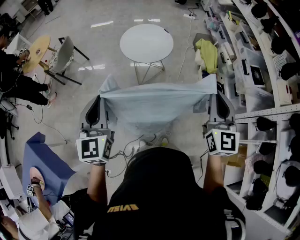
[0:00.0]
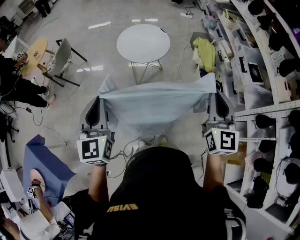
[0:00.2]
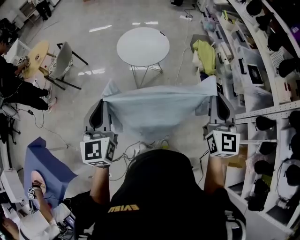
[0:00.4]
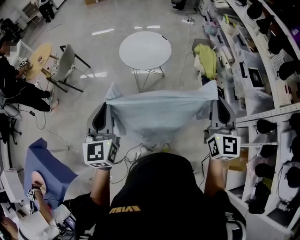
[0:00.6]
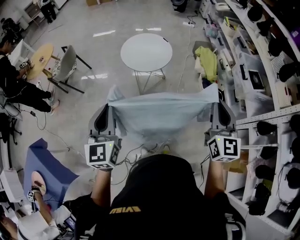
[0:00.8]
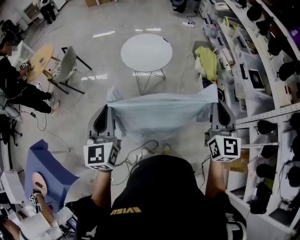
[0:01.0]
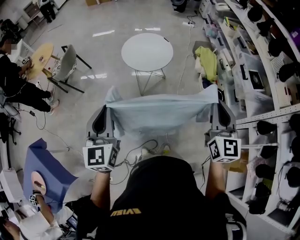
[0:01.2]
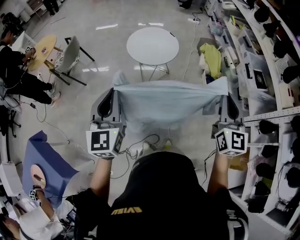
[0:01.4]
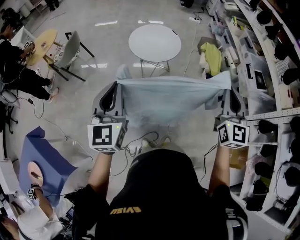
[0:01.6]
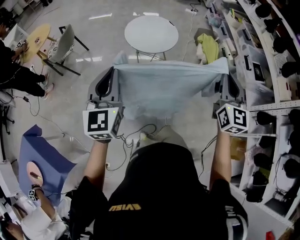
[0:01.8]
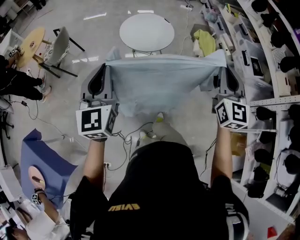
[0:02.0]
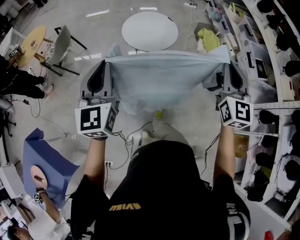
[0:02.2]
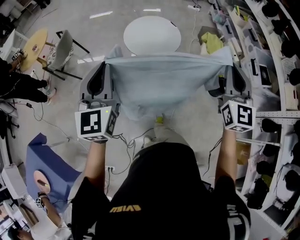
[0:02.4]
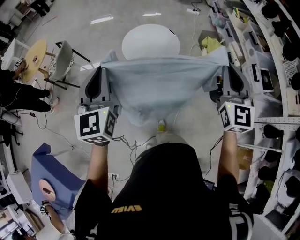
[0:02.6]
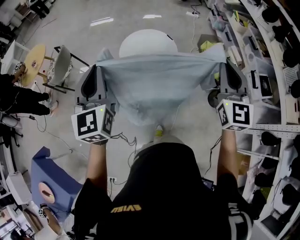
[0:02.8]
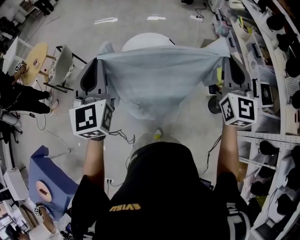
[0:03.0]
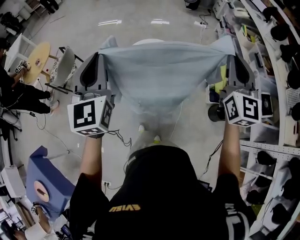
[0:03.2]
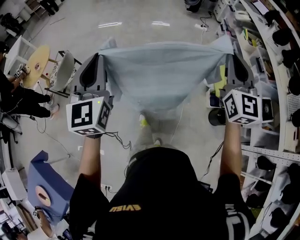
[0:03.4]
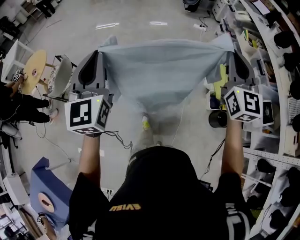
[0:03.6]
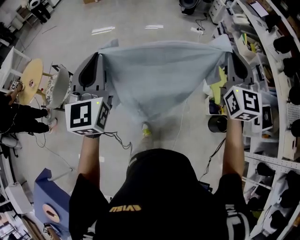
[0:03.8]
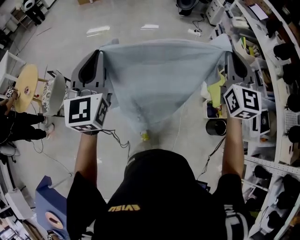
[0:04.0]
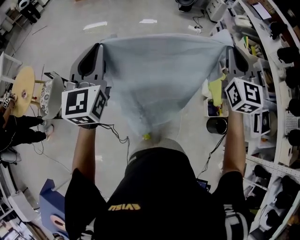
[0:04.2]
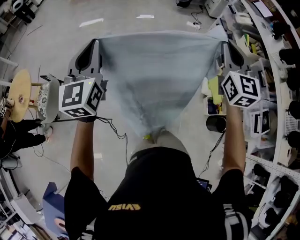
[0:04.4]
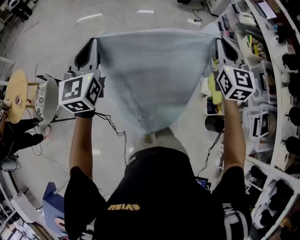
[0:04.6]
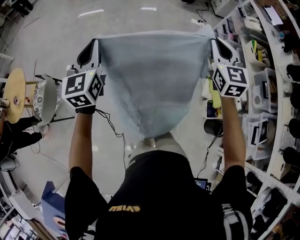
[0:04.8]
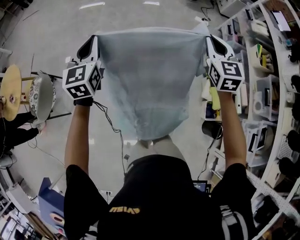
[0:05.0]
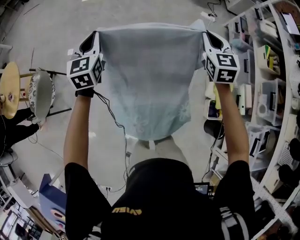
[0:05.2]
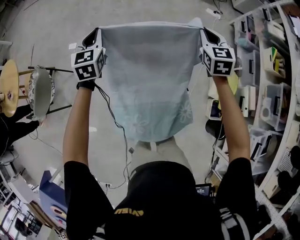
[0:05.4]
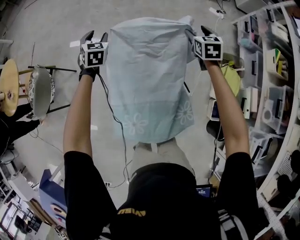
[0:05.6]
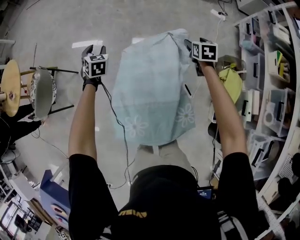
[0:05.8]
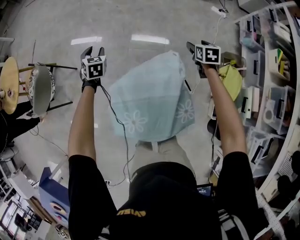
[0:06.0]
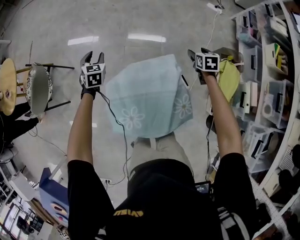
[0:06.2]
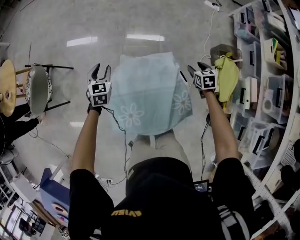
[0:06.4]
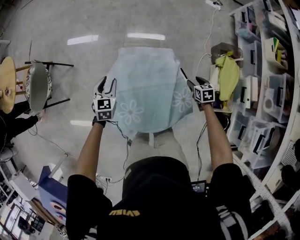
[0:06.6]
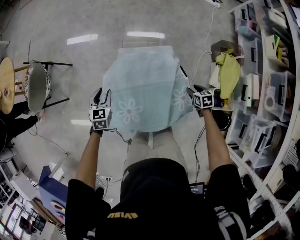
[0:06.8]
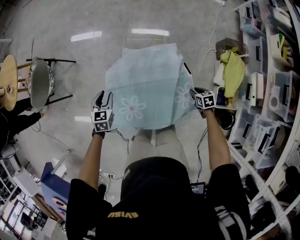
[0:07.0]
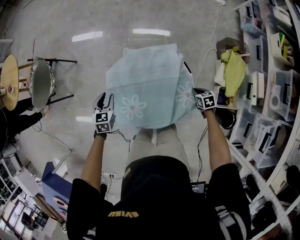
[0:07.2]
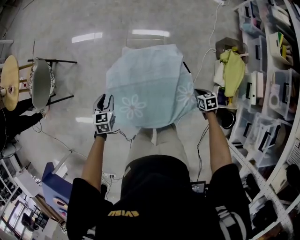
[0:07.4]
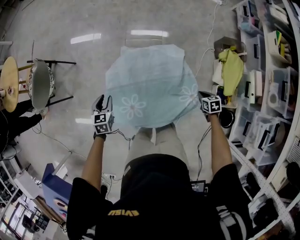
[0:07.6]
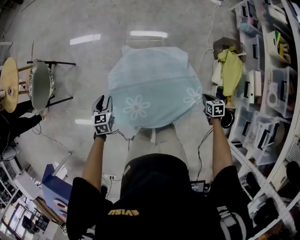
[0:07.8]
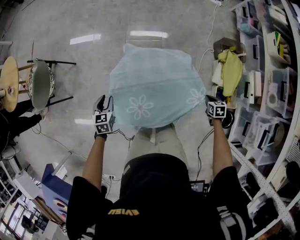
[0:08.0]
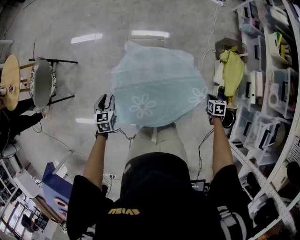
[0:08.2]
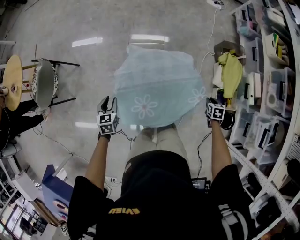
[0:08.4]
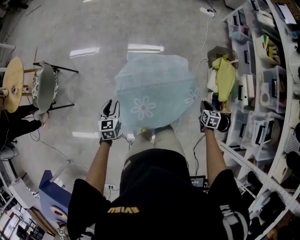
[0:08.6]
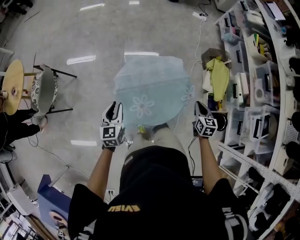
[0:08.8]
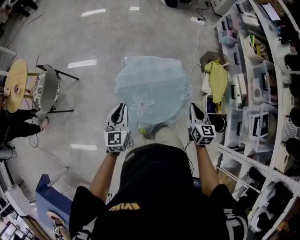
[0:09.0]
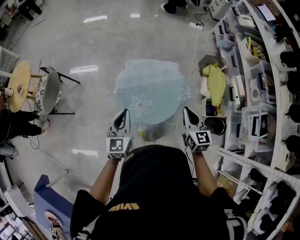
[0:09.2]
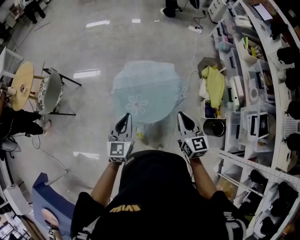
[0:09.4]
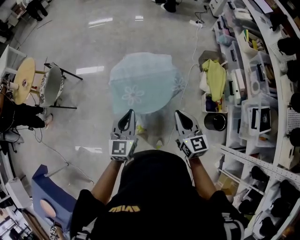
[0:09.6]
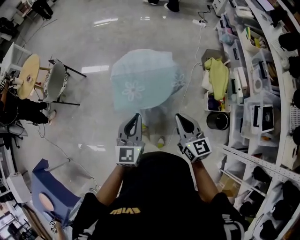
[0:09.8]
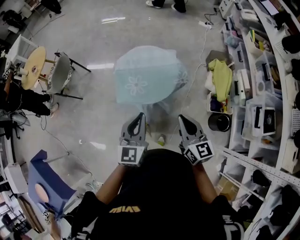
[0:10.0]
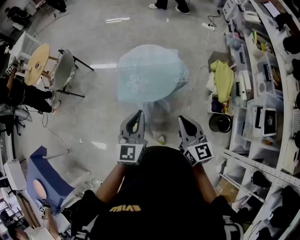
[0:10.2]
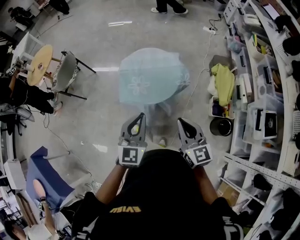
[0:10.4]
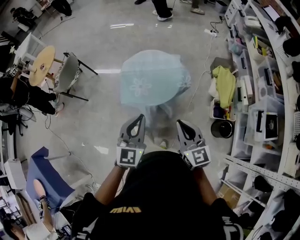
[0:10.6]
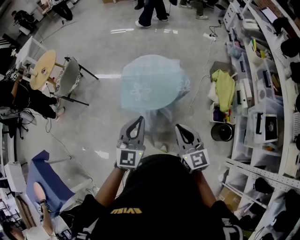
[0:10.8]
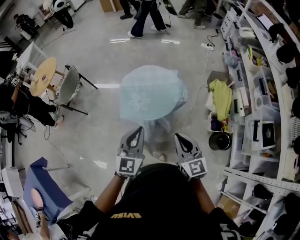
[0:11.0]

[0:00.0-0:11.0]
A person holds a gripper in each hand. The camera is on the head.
0:00.0 to 0:01.6: The grippers move only a little.
0:01.6 to 0:03.2: The two grippers go about 35 cm forward.
0:03.2 to 0:04.8: The pair of grippers is taken forward, some 60 cm. The right gripper turns by approximately 20 degrees.
0:04.8 to 0:06.2: Both grippers travel together downward, approximately 40 cm. The right gripper tilts its fingers approximately 40 degrees downward, and opens its fingers. The left gripper angles its fingers downward, by about 40 degrees, and opens.
0:06.2 to 0:07.8: Both grippers travel together backward, about 30 cm. The right gripper closes.
0:07.8 to 0:09.4: The left gripper heads upward, backward and to the right, covering approximately 35 cm, points its fingers about 30 degrees further upward, and closes. Meanwhile the right gripper is displaced upward, backward and to the left by roughly 50 cm, and tilts its fingers some 50 degrees upward.
0:09.4 to 0:11.0: The left gripper is displaced backward and to the right by roughly 25 cm; the right gripper shifts some 20 cm backward.

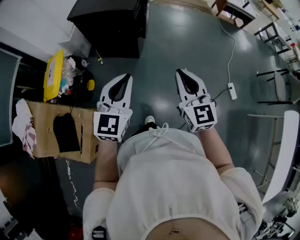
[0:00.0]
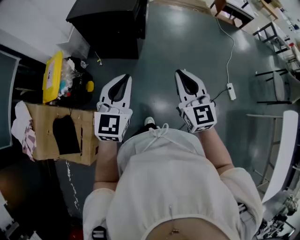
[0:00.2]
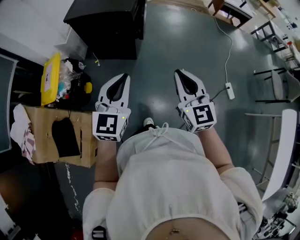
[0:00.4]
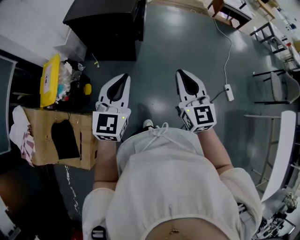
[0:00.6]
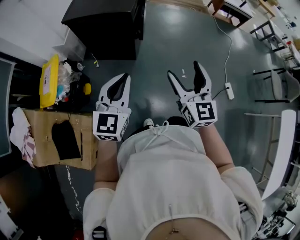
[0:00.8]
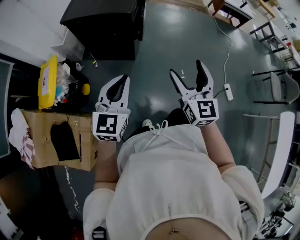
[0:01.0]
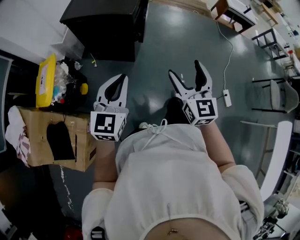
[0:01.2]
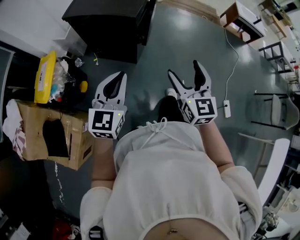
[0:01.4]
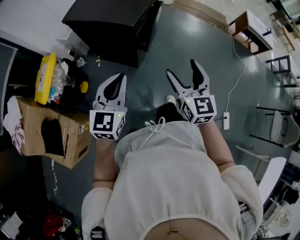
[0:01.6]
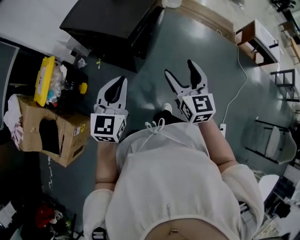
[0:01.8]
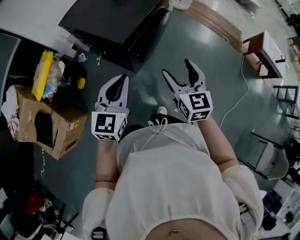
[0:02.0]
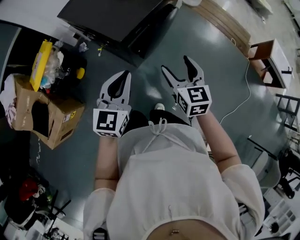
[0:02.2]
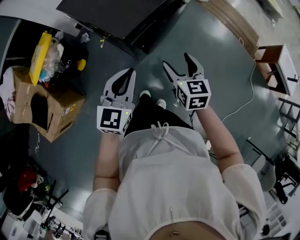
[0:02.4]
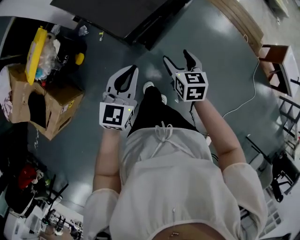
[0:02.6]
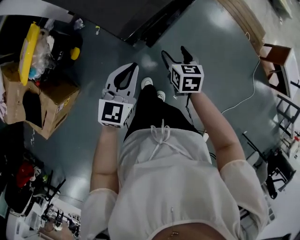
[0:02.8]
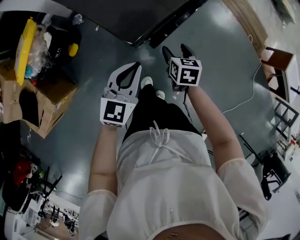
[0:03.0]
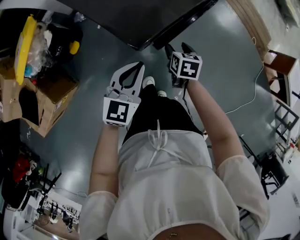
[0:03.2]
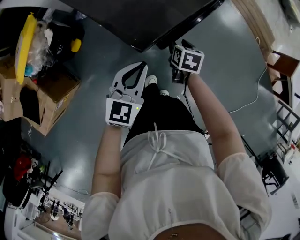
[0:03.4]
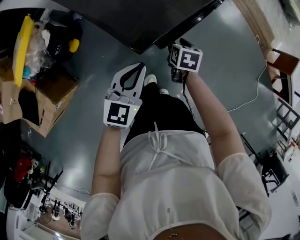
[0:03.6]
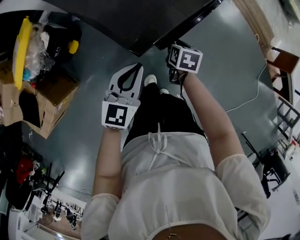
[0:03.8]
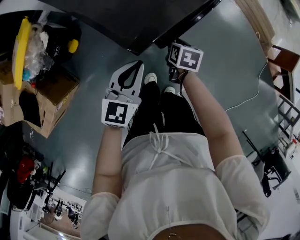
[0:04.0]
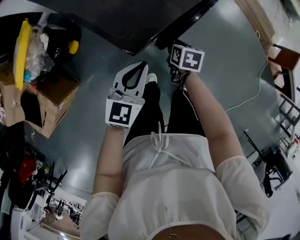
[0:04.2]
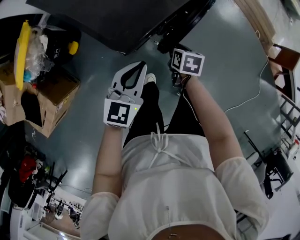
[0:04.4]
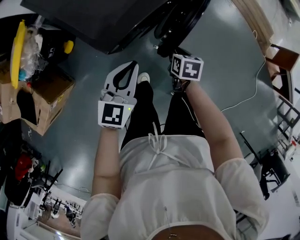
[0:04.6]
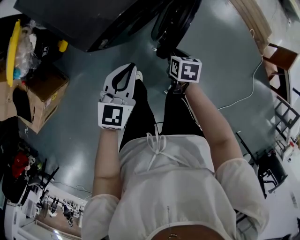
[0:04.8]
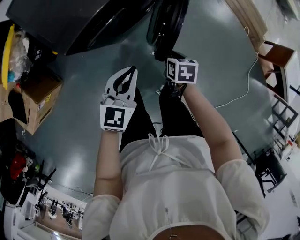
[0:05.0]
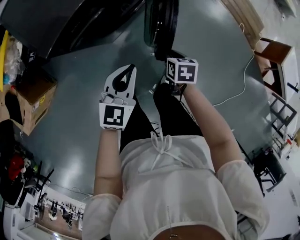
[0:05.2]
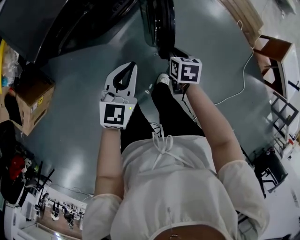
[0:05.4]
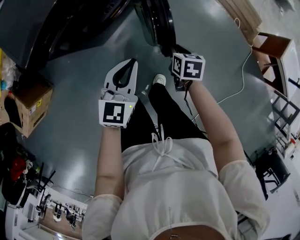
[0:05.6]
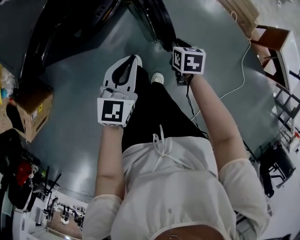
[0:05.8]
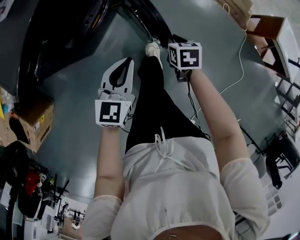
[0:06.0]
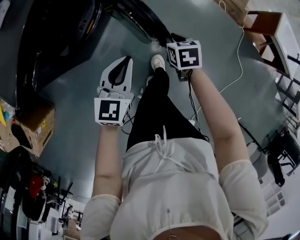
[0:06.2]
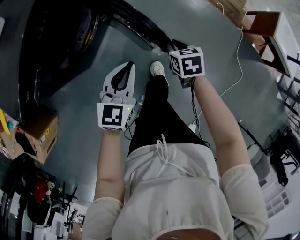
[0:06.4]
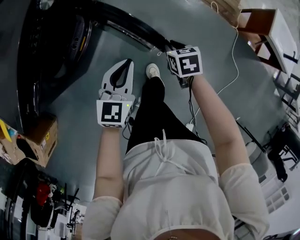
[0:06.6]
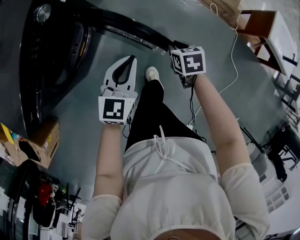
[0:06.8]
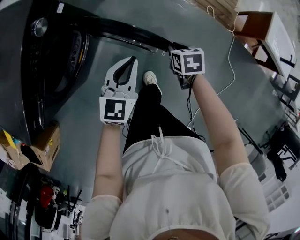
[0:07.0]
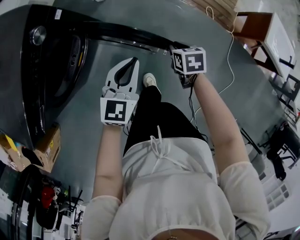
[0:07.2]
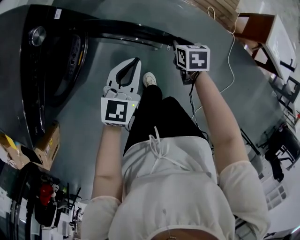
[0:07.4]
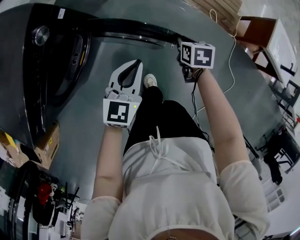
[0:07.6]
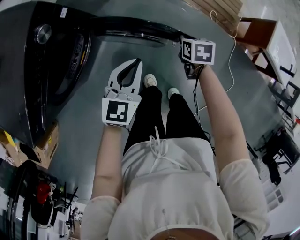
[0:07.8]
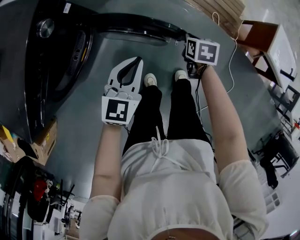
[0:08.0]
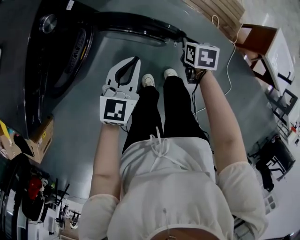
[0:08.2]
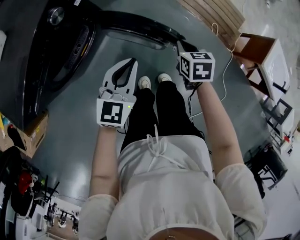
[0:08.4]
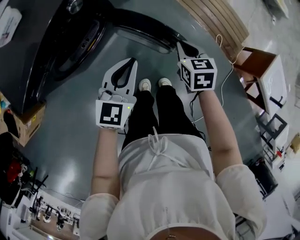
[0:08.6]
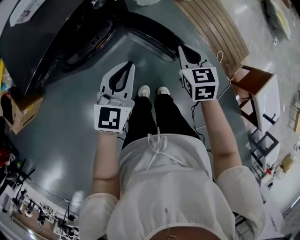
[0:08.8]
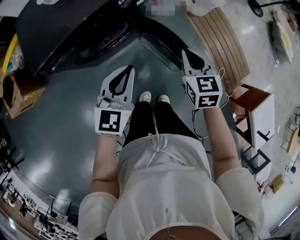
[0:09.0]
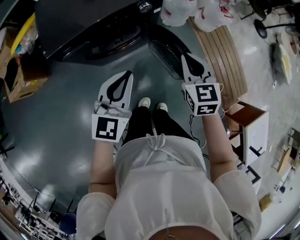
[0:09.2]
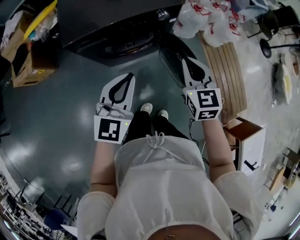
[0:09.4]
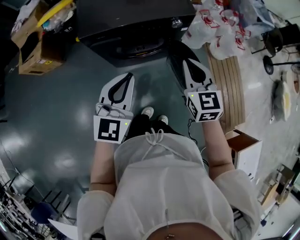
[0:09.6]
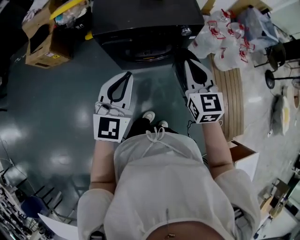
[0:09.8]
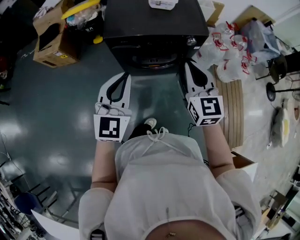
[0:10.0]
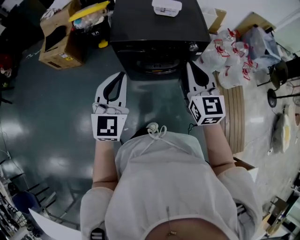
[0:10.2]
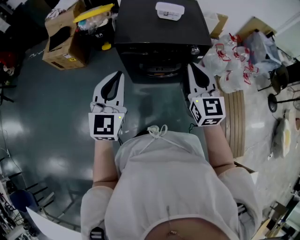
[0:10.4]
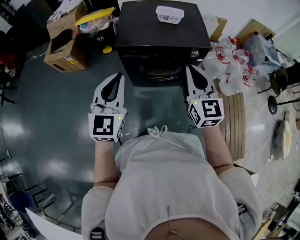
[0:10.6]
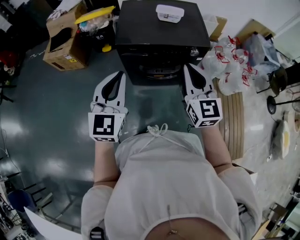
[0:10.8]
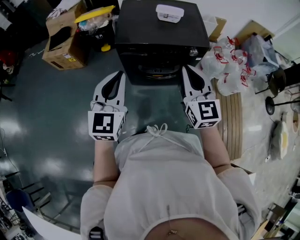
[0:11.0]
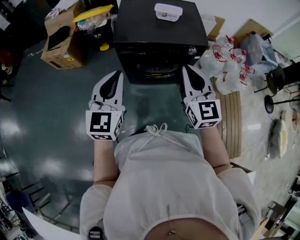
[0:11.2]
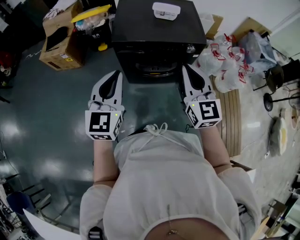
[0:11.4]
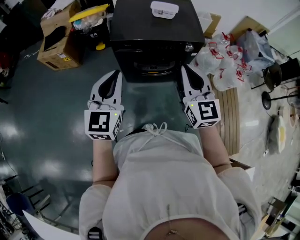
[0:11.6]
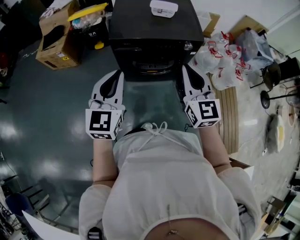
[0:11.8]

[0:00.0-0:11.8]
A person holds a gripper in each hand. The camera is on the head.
0:00.0 to 0:01.4: Both grippers travel together forward, about 20 cm. The right gripper opens its fingers.
0:01.4 to 0:03.0: The left gripper goes approximately 40 cm forward, downward and to the right, and turns by roughly 20 degrees, while the right gripper travels forward and downward by some 60 cm, and angles its fingers downward, by some 40 degrees.
0:03.0 to 0:04.4: The right gripper travels downward by approximately 10 cm, and closes its fingers.
0:04.4 to 0:06.0: The two grippers travel together, to the right, some 40 cm.
0:06.0 to 0:07.4: Both grippers travel together forward and to the right, about 25 cm.
0:07.4 to 0:08.8: The left gripper changes place by approximately 15 cm, and changes its angle by approximately 30 degrees. The right gripper heads upward, covering about 20 cm, and turns by some 40 degrees.
0:08.8 to 0:10.4: The right gripper moves upward, some 30 cm, and tilts its fingers about 40 degrees upward; the left gripper changes place by roughly 40 cm, and rotates about 50 degrees.
0:10.4 to 0:11.8: The grippers stay close to where they were, moving slightly.

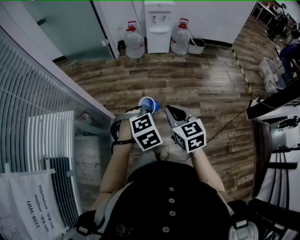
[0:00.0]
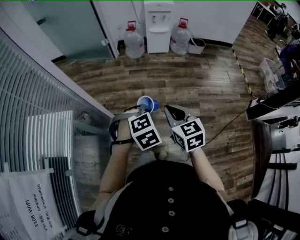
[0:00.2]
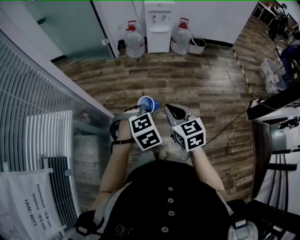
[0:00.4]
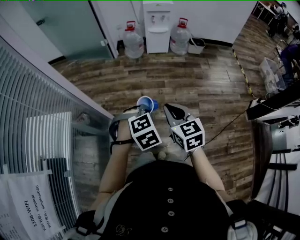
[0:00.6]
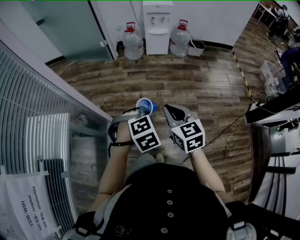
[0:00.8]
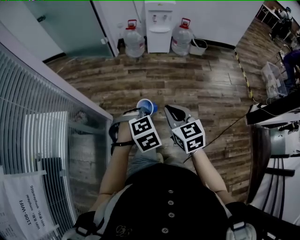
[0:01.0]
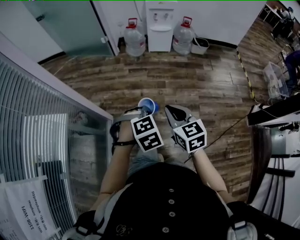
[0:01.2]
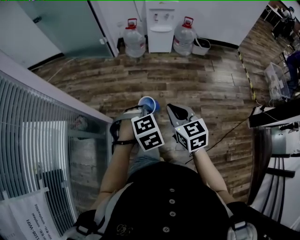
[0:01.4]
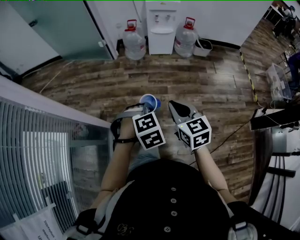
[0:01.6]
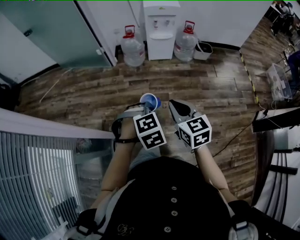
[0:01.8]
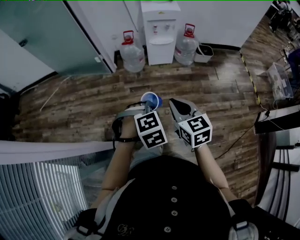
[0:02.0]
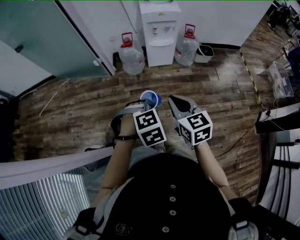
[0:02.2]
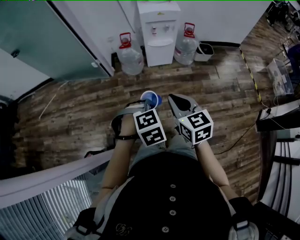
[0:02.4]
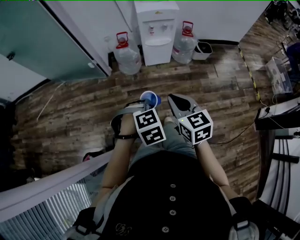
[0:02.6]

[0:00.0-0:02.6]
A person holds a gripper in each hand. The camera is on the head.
0:00.0 to 0:01.2: Both grippers move forward, about 5 cm.
0:01.2 to 0:02.6: The two grippers go roughly 40 cm forward.
